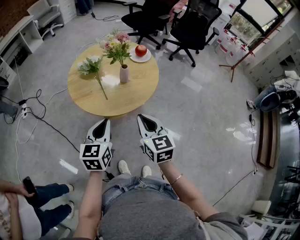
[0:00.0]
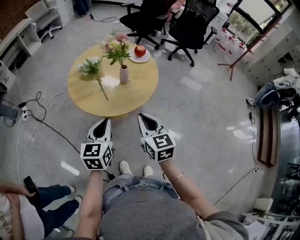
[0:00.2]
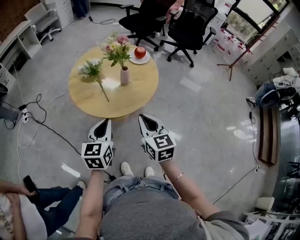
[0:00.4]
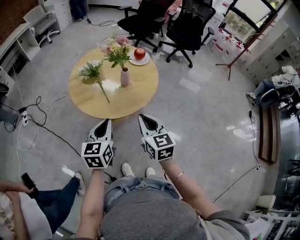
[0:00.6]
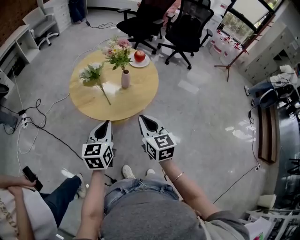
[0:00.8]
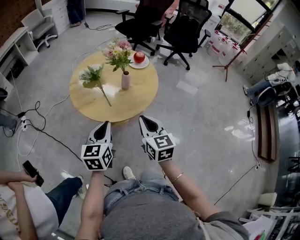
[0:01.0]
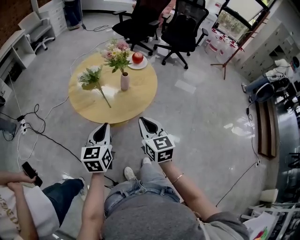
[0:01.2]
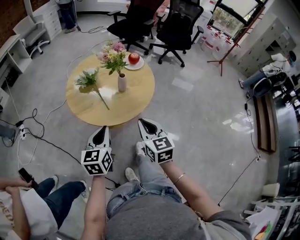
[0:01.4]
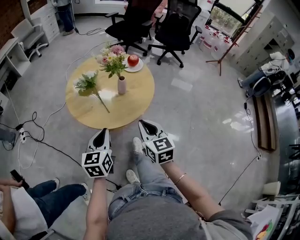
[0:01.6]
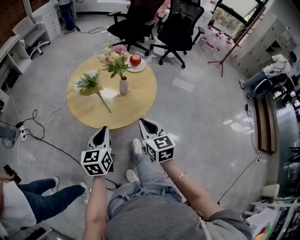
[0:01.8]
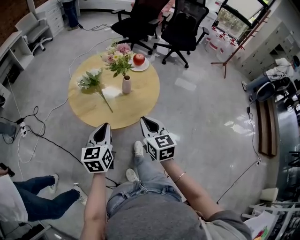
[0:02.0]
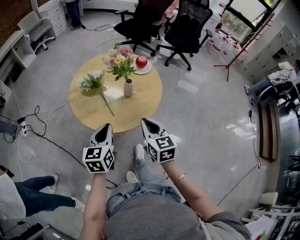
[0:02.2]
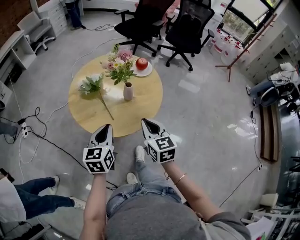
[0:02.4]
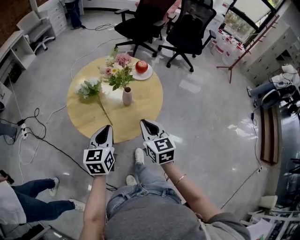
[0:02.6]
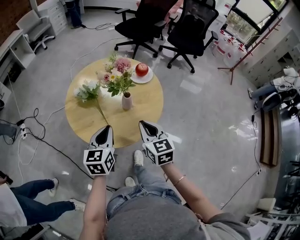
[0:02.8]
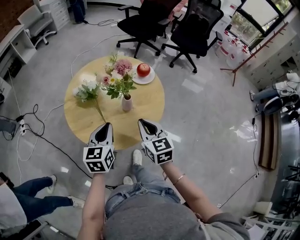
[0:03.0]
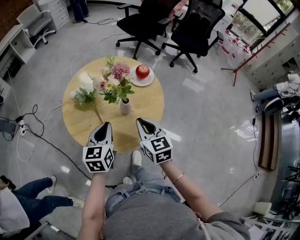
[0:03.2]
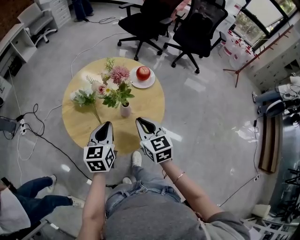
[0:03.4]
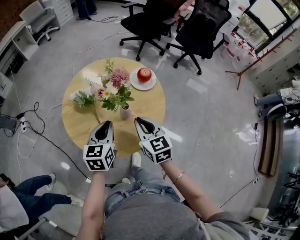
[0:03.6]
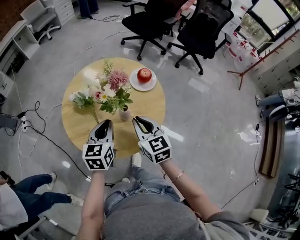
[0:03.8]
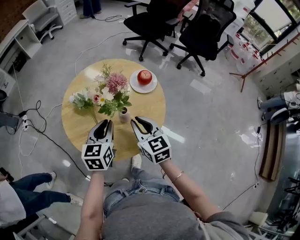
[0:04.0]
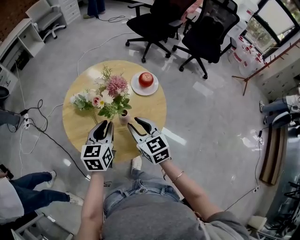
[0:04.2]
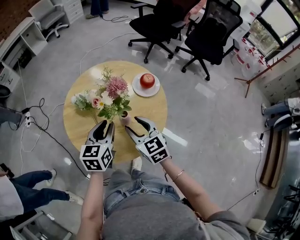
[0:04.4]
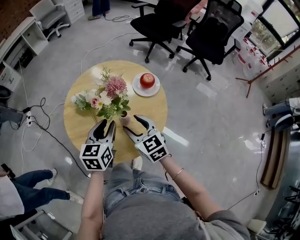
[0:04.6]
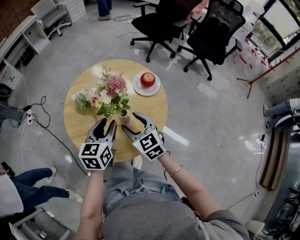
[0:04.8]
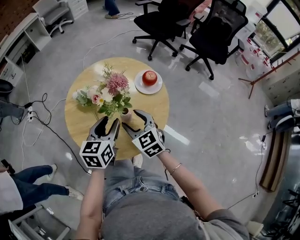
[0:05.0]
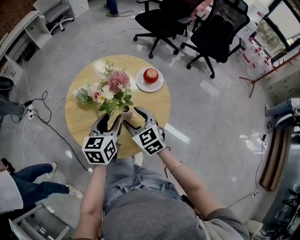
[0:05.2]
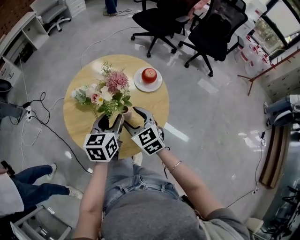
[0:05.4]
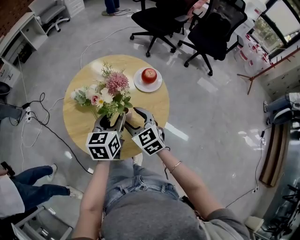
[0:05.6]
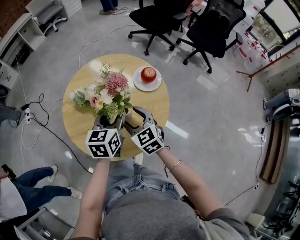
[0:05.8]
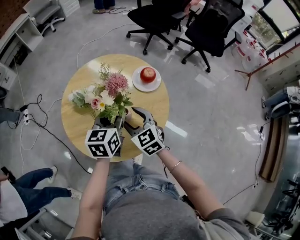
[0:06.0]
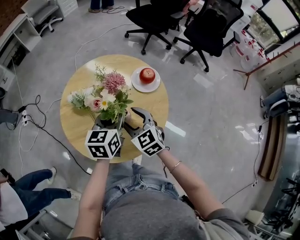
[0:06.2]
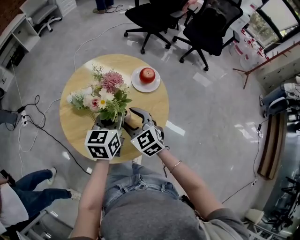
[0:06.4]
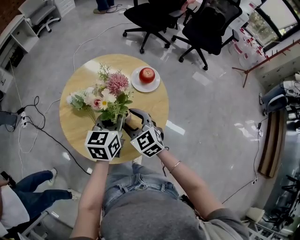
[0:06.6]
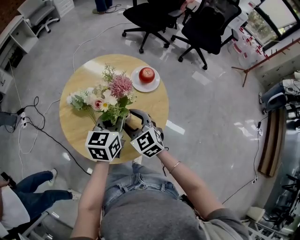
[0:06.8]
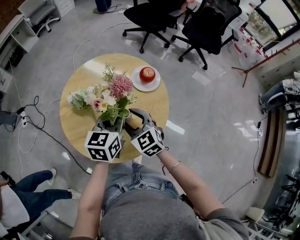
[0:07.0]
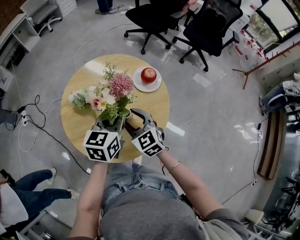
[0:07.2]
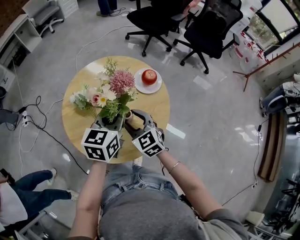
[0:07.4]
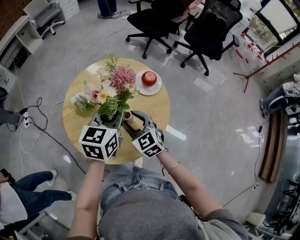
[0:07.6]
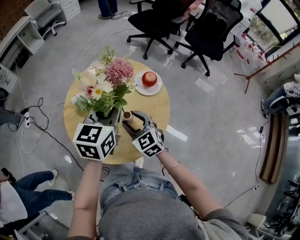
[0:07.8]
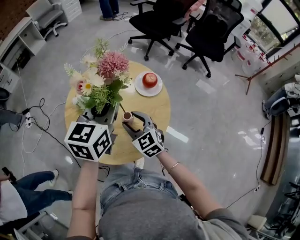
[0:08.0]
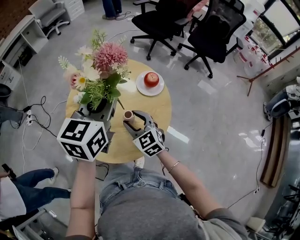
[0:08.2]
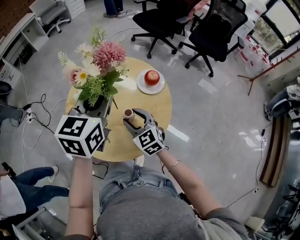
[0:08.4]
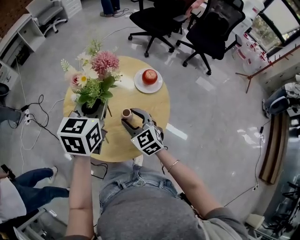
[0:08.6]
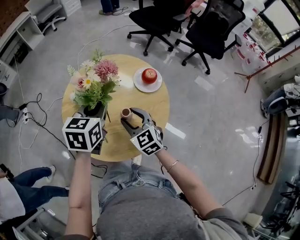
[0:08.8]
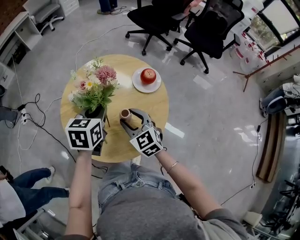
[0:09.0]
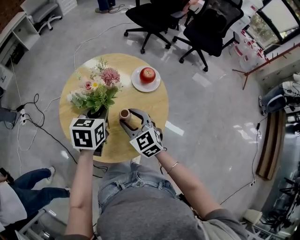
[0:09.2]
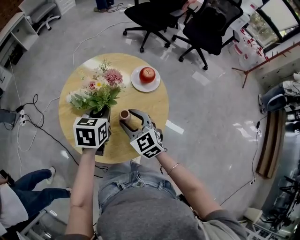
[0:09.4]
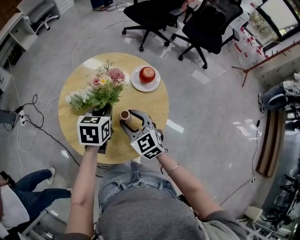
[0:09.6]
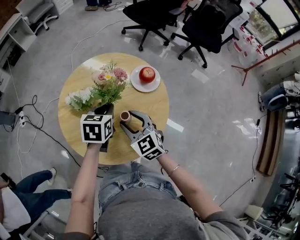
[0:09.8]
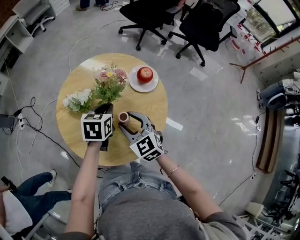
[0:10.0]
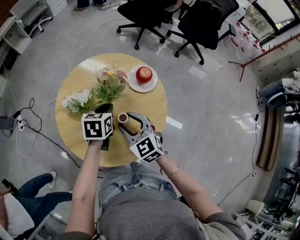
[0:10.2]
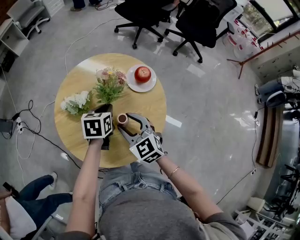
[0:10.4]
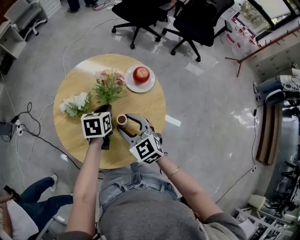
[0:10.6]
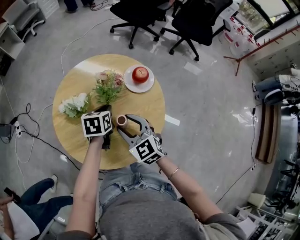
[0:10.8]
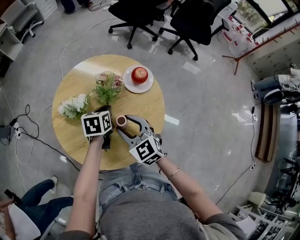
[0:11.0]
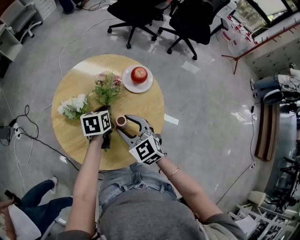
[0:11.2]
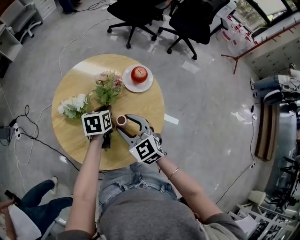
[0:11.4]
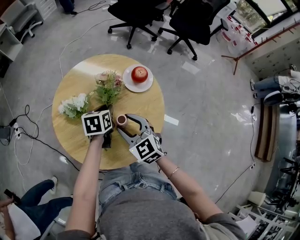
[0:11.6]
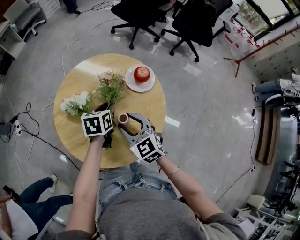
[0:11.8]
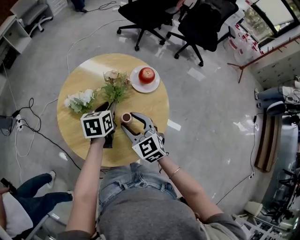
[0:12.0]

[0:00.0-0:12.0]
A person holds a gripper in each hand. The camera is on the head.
0:00.0 to 0:01.6: There are only small adjustments of the grippers.
0:01.6 to 0:03.0: The grippers both shift forward by approximately 15 cm.
0:03.0 to 0:04.4: The two grippers go about 10 cm forward. The left gripper opens its fingers, while the right gripper changes its angle by roughly 20 degrees, and opens up.
0:04.4 to 0:06.0: The left gripper ends up approximately 5 cm from where it was.
0:06.0 to 0:07.6: The left gripper moves upward, approximately 5 cm, and closes.
0:07.6 to 0:09.0: The left gripper travels to the left and downward by about 10 cm.
0:09.0 to 0:10.4: The left gripper heads downward, covering approximately 10 cm.
0:10.4 to 0:12.0: There are only small adjustments of the grippers.

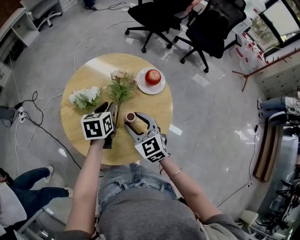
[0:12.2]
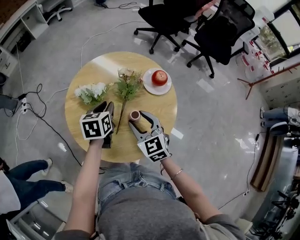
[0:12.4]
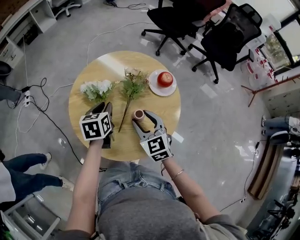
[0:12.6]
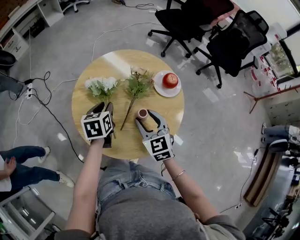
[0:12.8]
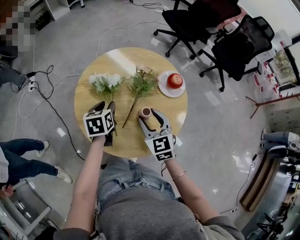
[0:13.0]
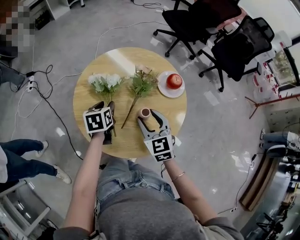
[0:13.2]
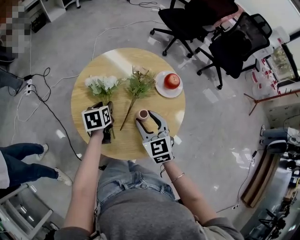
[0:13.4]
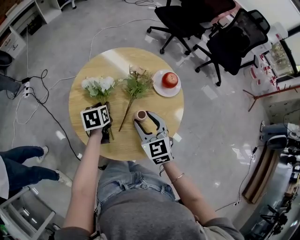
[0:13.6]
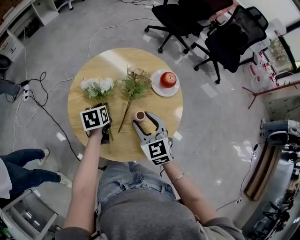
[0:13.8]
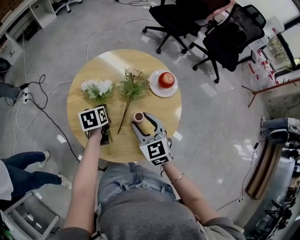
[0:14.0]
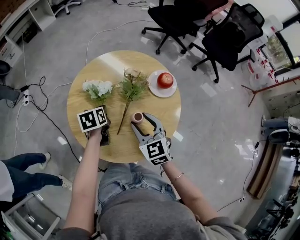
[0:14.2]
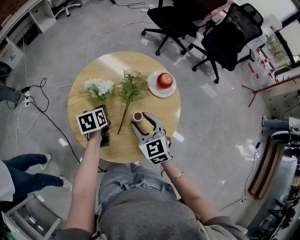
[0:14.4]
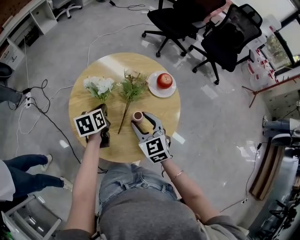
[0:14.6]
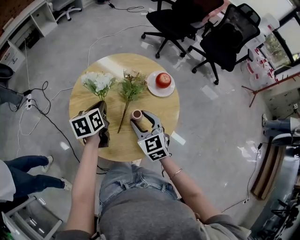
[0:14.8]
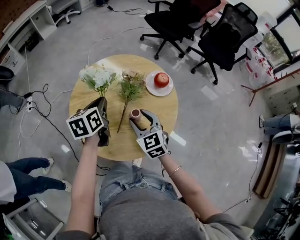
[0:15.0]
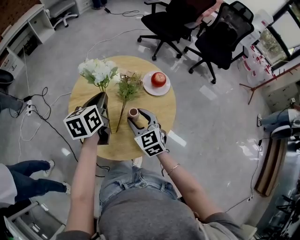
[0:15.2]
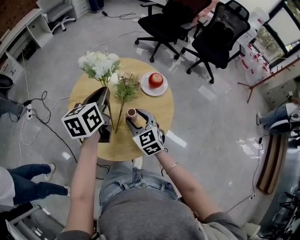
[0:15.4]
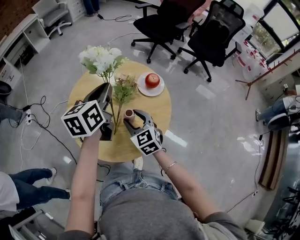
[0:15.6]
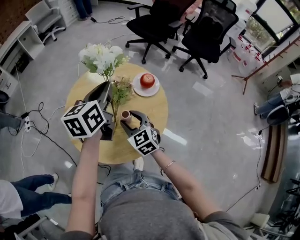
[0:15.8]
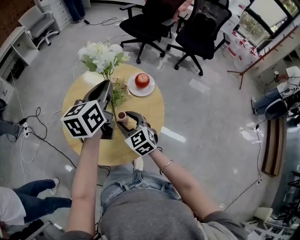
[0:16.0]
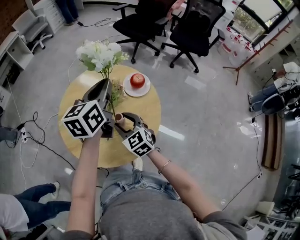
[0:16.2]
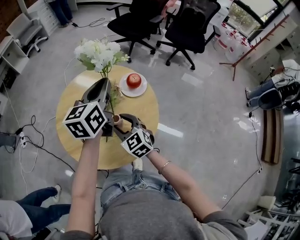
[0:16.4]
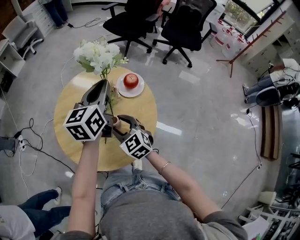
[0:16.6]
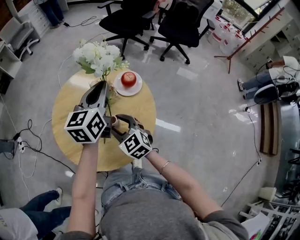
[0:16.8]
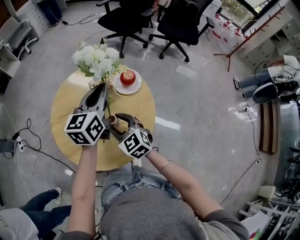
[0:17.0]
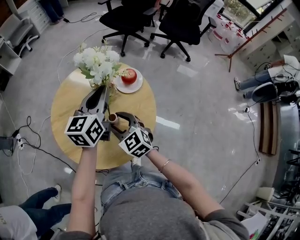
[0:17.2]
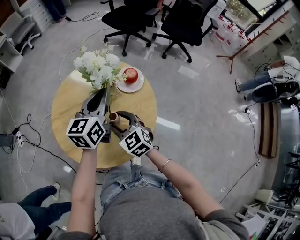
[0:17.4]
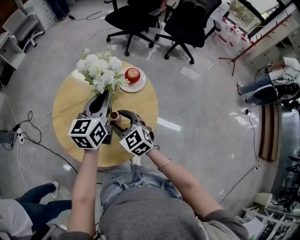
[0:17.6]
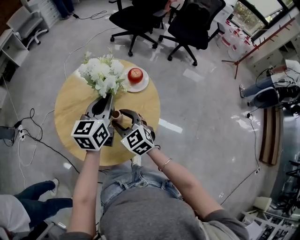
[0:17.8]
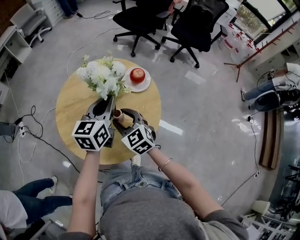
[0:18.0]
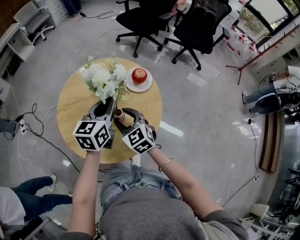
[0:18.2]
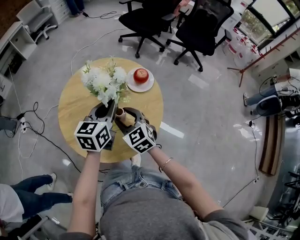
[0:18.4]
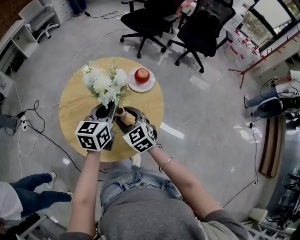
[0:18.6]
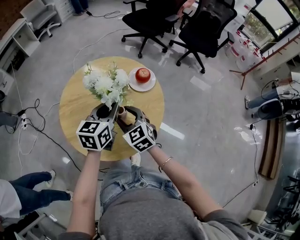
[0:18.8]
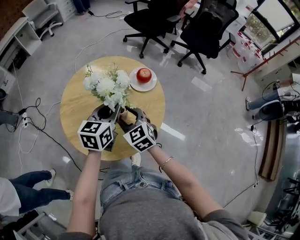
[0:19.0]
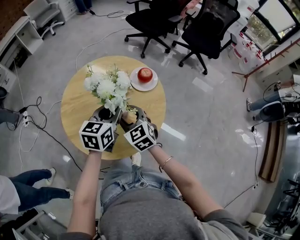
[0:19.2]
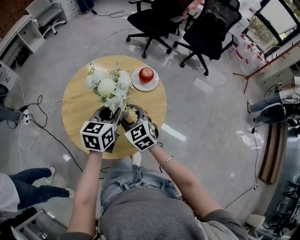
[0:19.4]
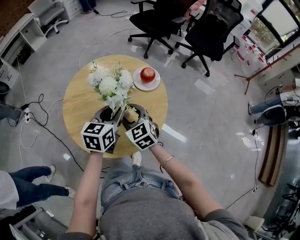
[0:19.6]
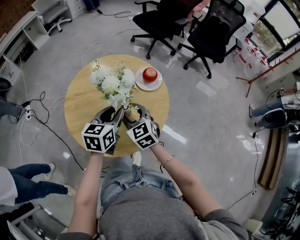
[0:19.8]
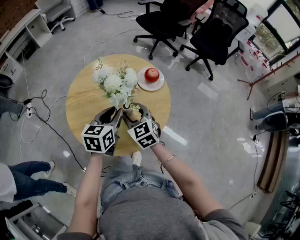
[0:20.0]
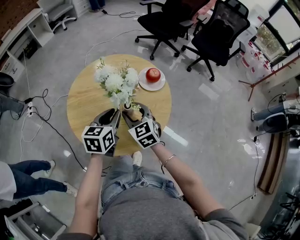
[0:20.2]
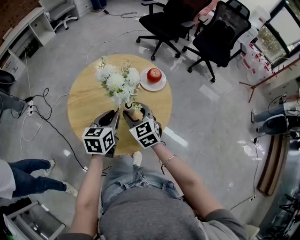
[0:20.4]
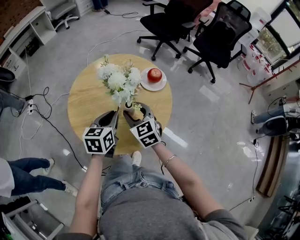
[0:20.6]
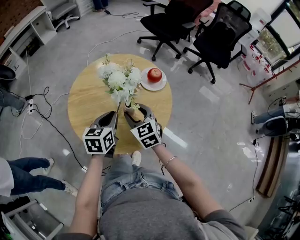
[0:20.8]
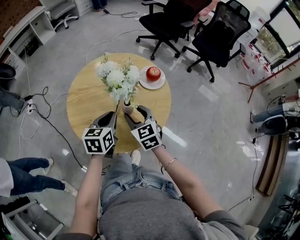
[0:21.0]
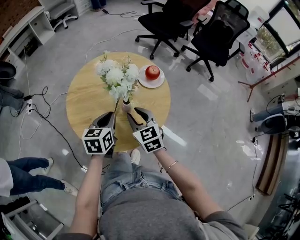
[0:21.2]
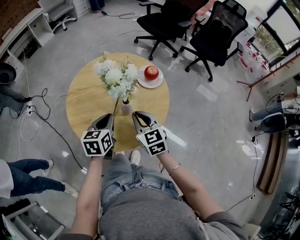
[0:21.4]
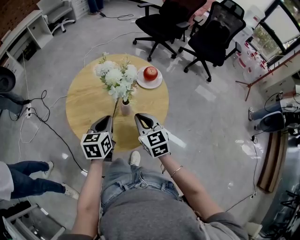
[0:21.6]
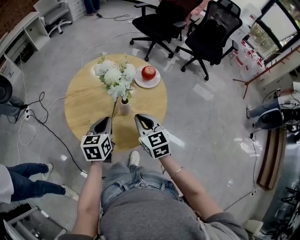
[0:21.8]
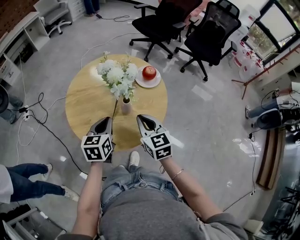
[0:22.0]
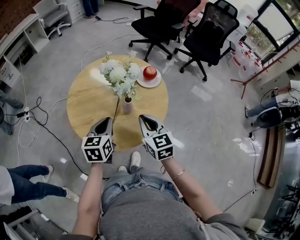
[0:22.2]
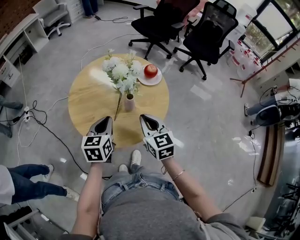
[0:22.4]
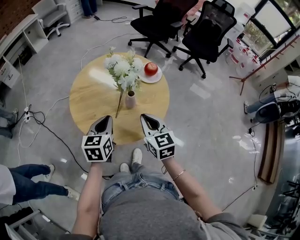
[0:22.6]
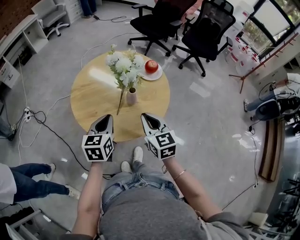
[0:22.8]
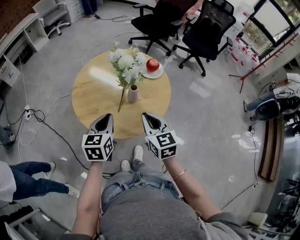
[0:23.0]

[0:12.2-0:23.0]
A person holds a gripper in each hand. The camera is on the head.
0:12.2 to 0:13.8: The left gripper shifts roughly 10 cm to the left and downward, and rotates approximately 20 degrees.
0:13.8 to 0:15.2: The left gripper moves upward, approximately 20 cm, and changes its angle by approximately 30 degrees.
0:15.2 to 0:16.8: The left gripper travels to the right and upward by some 15 cm, and changes its angle by roughly 30 degrees.
0:16.8 to 0:18.4: The left gripper goes about 10 cm downward and backward.
0:18.4 to 0:20.0: The left gripper is displaced backward by roughly 5 cm, and opens its fingers.
0:20.0 to 0:21.4: The right gripper moves backward, roughly 5 cm, and closes. Meanwhile the left gripper moves approximately 5 cm, and closes its fingers.
0:21.4 to 0:23.0: The right gripper is displaced backward by some 10 cm. The left gripper goes approximately 10 cm backward and to the left.

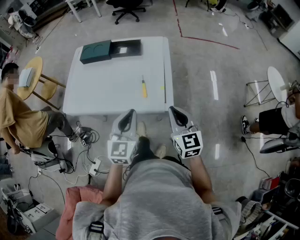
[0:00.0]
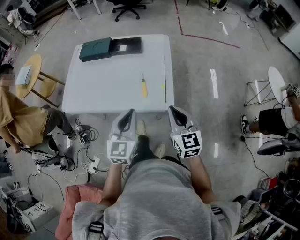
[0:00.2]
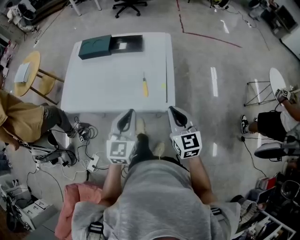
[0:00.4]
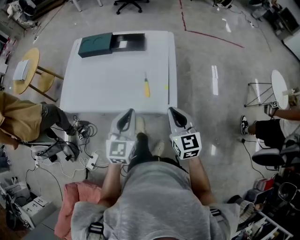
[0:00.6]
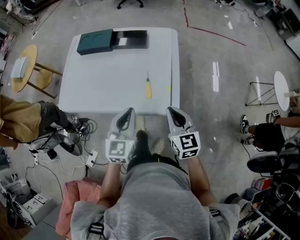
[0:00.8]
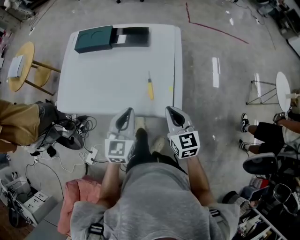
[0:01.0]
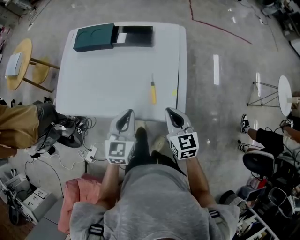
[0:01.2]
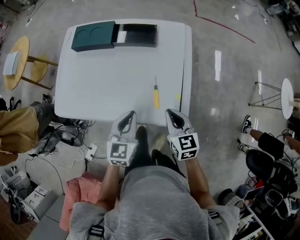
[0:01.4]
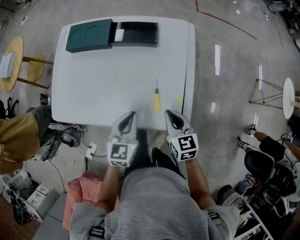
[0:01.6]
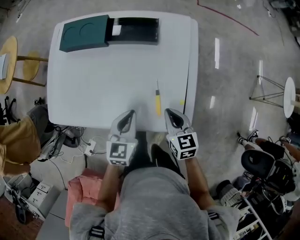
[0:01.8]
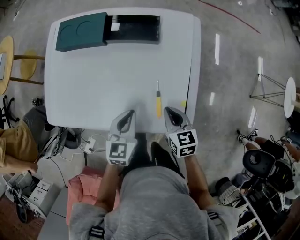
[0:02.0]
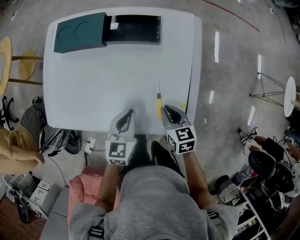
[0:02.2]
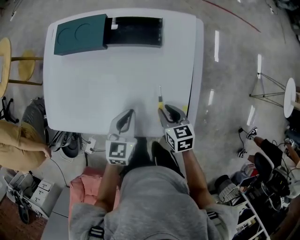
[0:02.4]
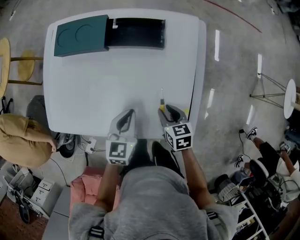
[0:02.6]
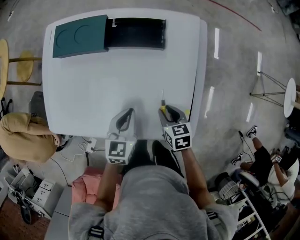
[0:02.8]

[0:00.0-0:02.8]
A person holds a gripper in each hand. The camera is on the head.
0:00.0 to 0:01.4: The grippers both shift forward, downward and to the left by approximately 20 cm.
0:01.4 to 0:02.8: The right gripper goes roughly 15 cm downward and forward, rotates approximately 30 degrees, and opens its fingers. The left gripper travels forward and downward by about 15 cm.
